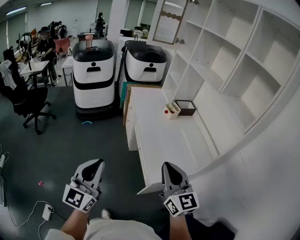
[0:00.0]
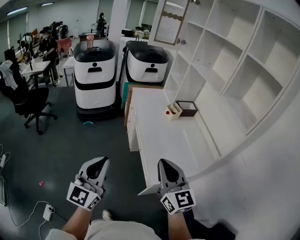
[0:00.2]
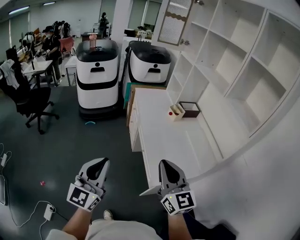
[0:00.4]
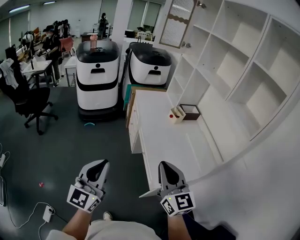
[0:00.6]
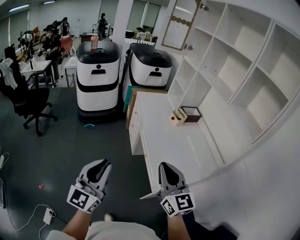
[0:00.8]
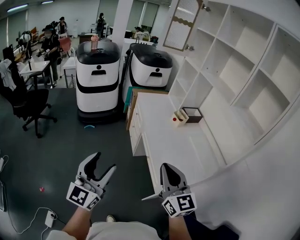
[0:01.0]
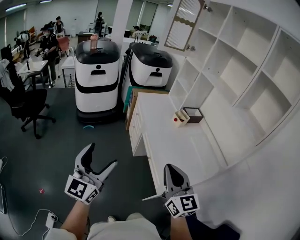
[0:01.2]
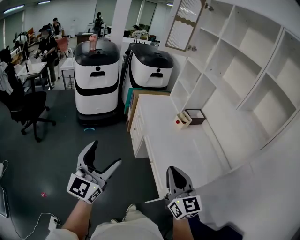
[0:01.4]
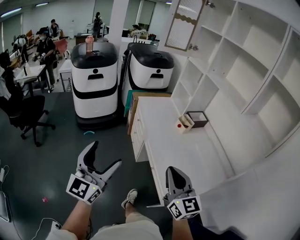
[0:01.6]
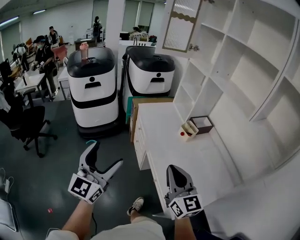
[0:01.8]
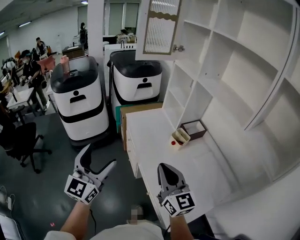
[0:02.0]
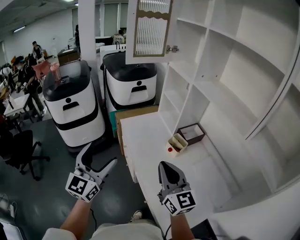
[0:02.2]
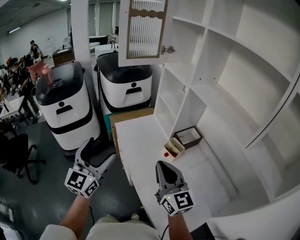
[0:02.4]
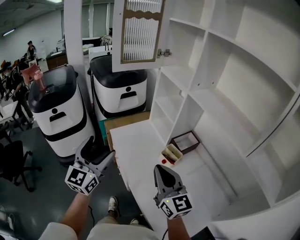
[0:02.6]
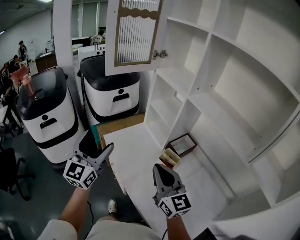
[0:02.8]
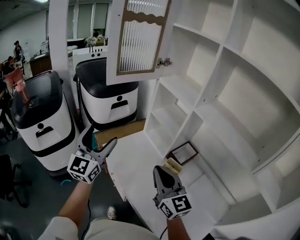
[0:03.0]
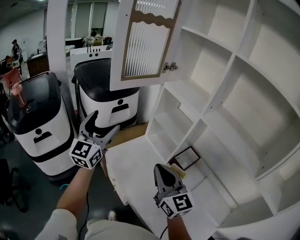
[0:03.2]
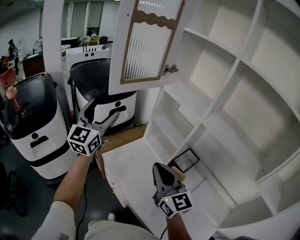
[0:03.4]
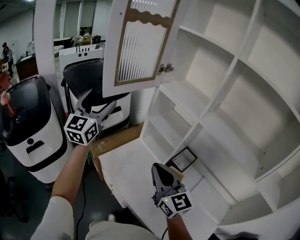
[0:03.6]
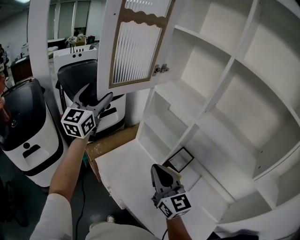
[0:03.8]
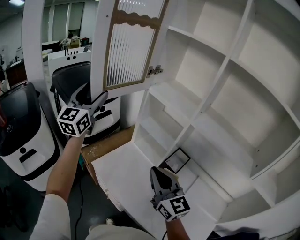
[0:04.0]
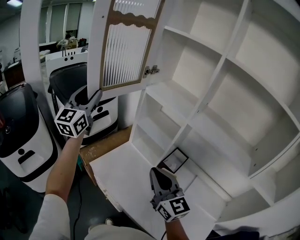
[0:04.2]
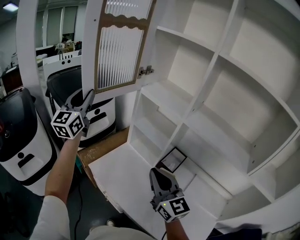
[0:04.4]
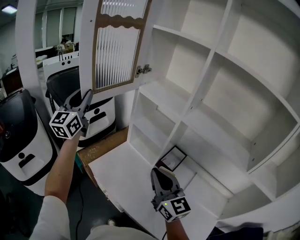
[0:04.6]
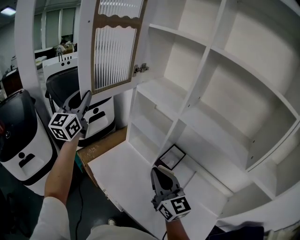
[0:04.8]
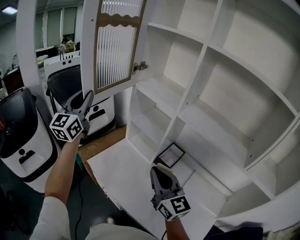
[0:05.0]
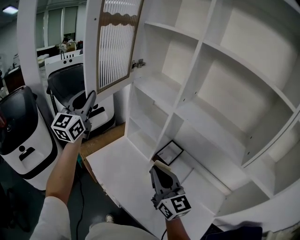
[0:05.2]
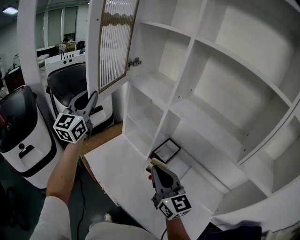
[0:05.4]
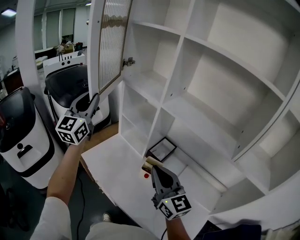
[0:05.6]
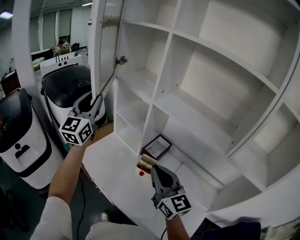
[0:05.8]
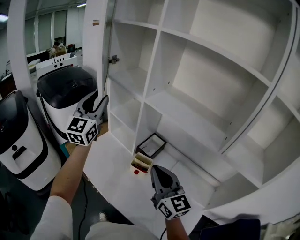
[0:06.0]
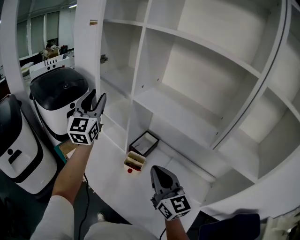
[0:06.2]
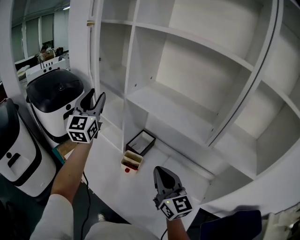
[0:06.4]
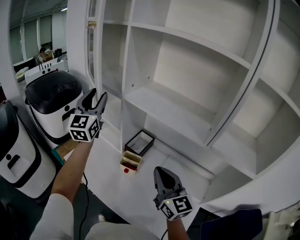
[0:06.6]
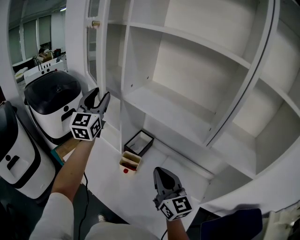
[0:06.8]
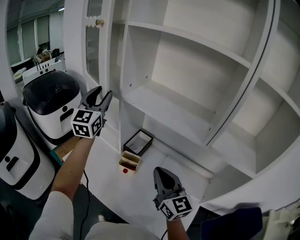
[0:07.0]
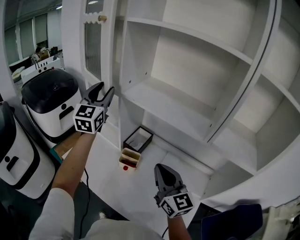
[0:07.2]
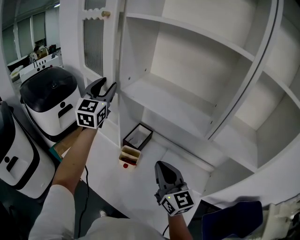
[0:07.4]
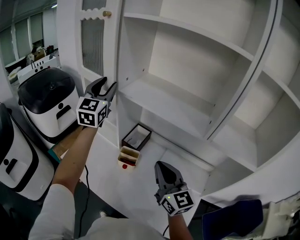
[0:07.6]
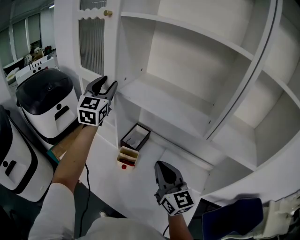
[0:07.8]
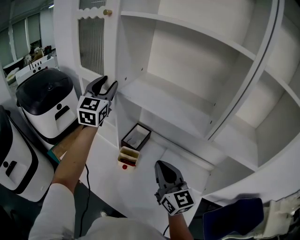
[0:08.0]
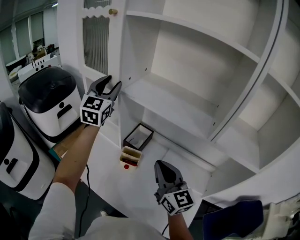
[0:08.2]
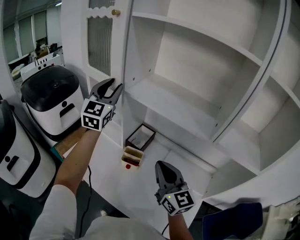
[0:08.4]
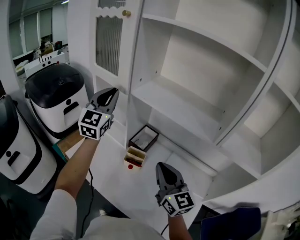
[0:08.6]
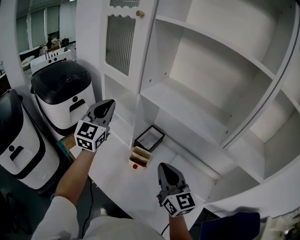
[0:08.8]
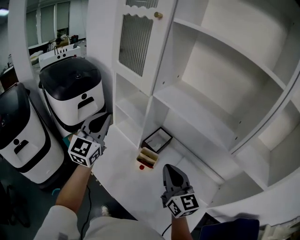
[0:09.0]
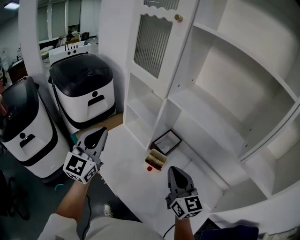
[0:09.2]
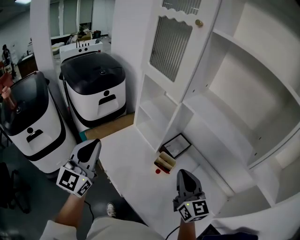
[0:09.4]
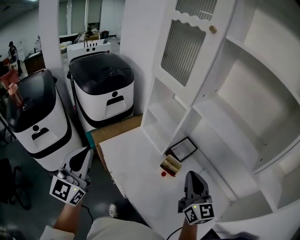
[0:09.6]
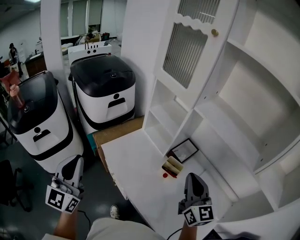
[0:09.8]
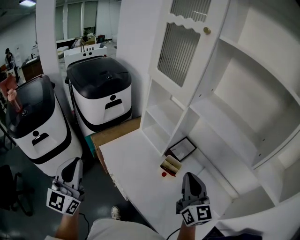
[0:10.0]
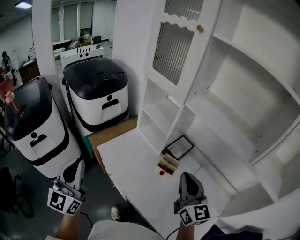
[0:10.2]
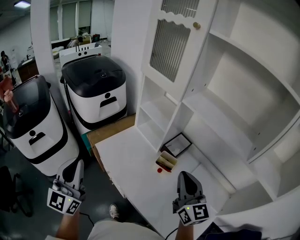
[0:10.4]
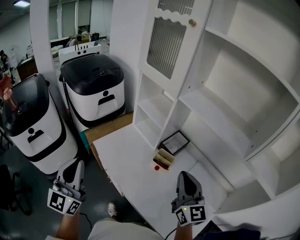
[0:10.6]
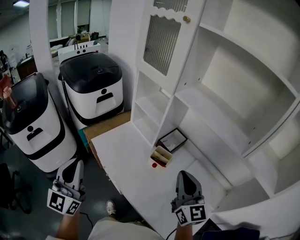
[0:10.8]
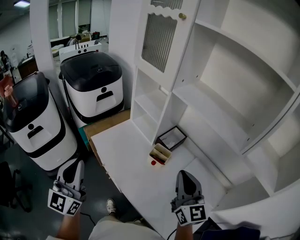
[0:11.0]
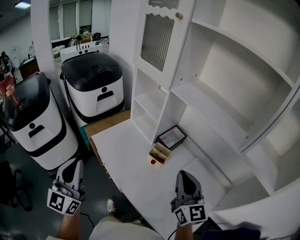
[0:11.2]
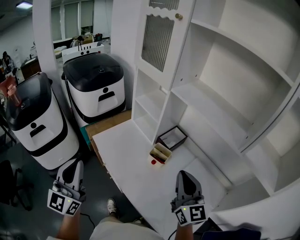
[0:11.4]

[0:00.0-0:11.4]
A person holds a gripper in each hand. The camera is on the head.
0:00.0 to 0:01.4: The left gripper shifts about 15 cm forward and to the left, and opens up, while the right gripper moves to the left and forward, roughly 15 cm.
0:01.4 to 0:02.8: Both grippers are carried forward, approximately 50 cm.
0:02.8 to 0:04.2: The left gripper goes about 35 cm forward, and closes up, while the right gripper shifts about 15 cm forward and to the left.
0:04.2 to 0:05.6: Both grippers move to the right and backward, roughly 15 cm.
0:05.6 to 0:07.2: The left gripper shifts about 20 cm to the right. Meanwhile the right gripper goes some 15 cm to the right.
0:07.2 to 0:08.6: The grippers stay close to where they were, moving slightly.
0:08.6 to 0:10.0: The right gripper is displaced to the left by roughly 10 cm, while the left gripper shifts some 40 cm to the left and backward, and turns by approximately 20 degrees.
0:10.0 to 0:11.4: The left gripper shifts approximately 10 cm to the right and backward, while the right gripper goes roughly 10 cm backward and to the right.

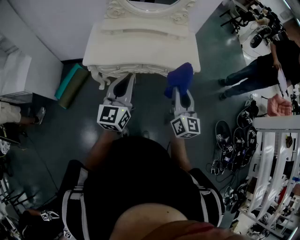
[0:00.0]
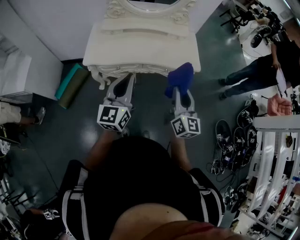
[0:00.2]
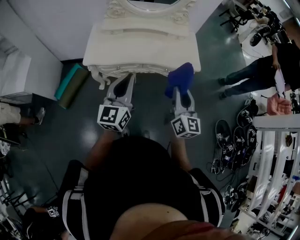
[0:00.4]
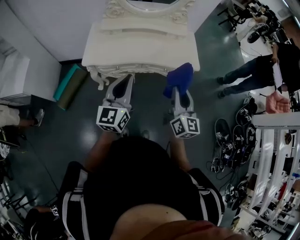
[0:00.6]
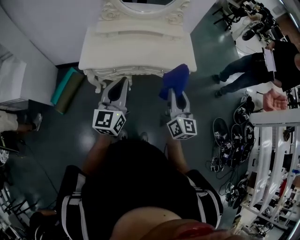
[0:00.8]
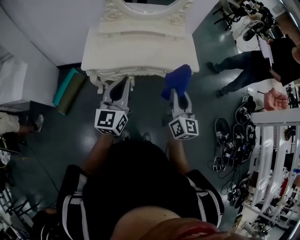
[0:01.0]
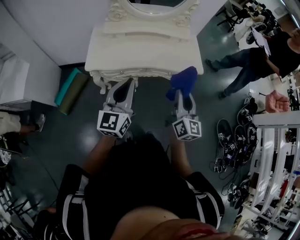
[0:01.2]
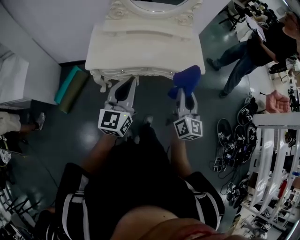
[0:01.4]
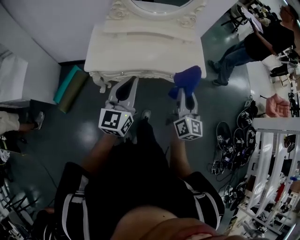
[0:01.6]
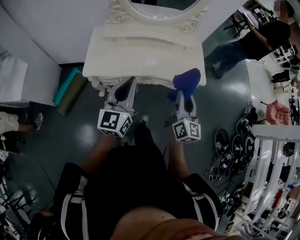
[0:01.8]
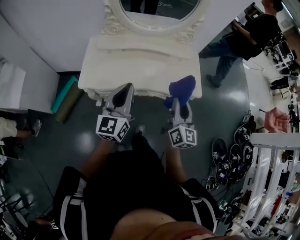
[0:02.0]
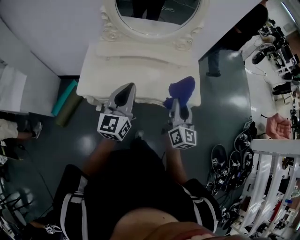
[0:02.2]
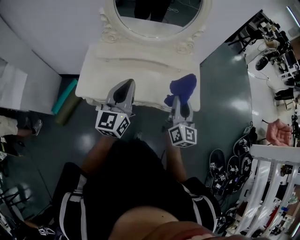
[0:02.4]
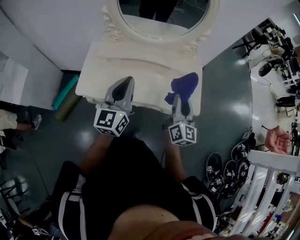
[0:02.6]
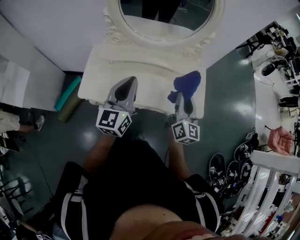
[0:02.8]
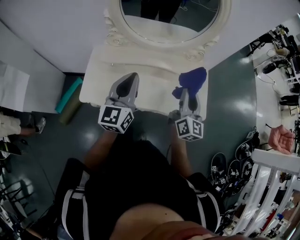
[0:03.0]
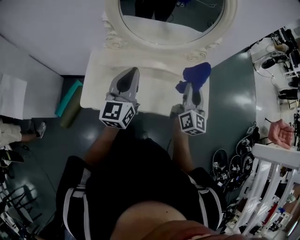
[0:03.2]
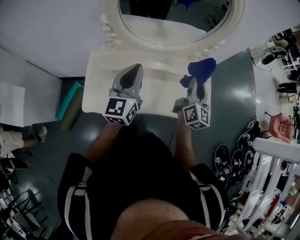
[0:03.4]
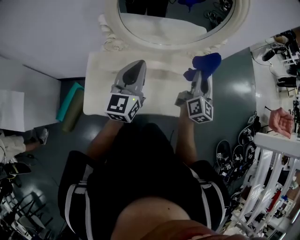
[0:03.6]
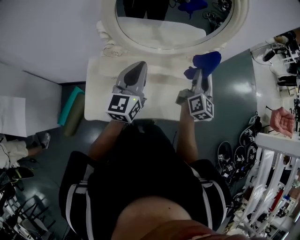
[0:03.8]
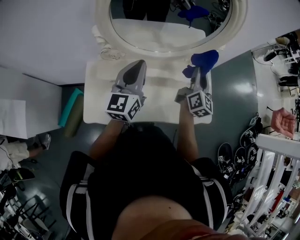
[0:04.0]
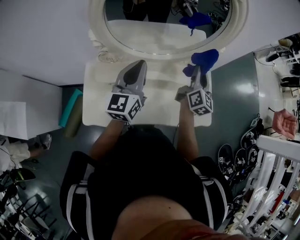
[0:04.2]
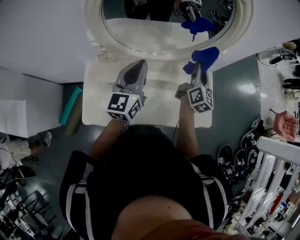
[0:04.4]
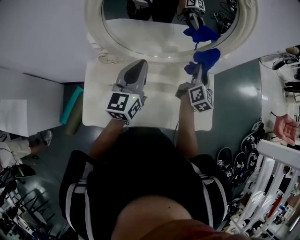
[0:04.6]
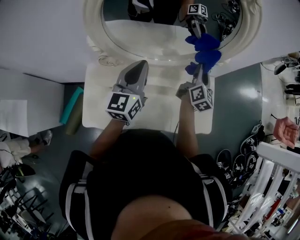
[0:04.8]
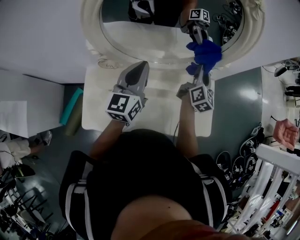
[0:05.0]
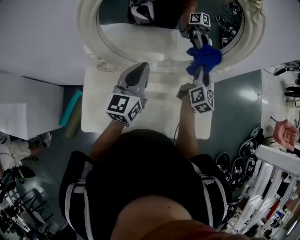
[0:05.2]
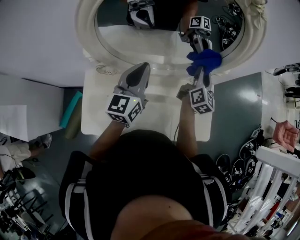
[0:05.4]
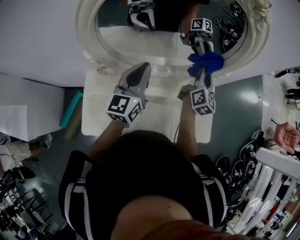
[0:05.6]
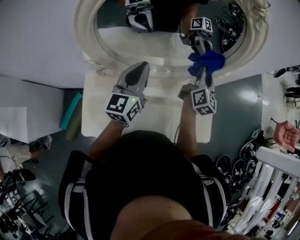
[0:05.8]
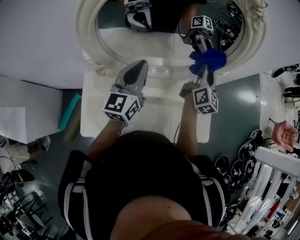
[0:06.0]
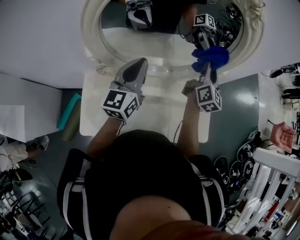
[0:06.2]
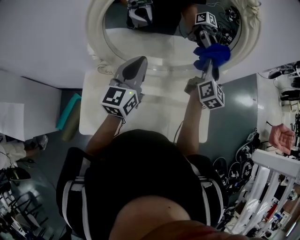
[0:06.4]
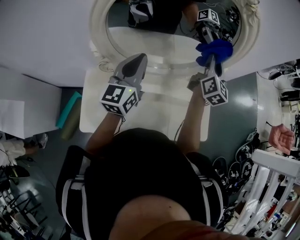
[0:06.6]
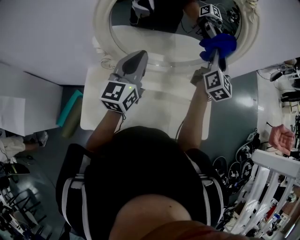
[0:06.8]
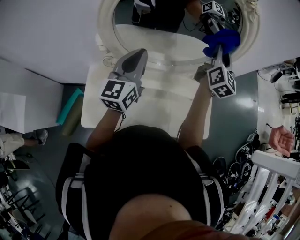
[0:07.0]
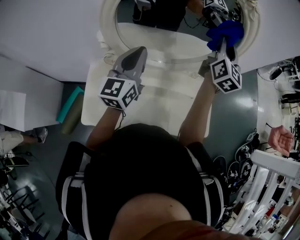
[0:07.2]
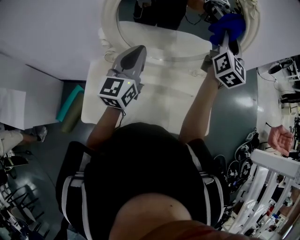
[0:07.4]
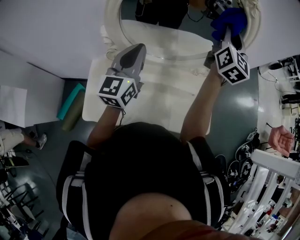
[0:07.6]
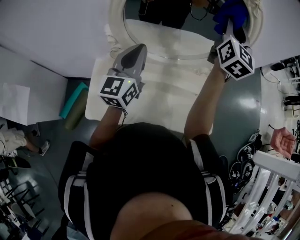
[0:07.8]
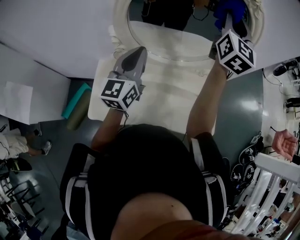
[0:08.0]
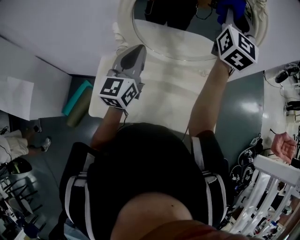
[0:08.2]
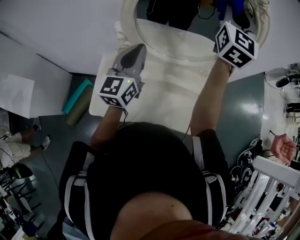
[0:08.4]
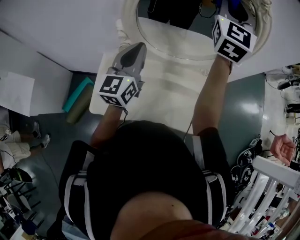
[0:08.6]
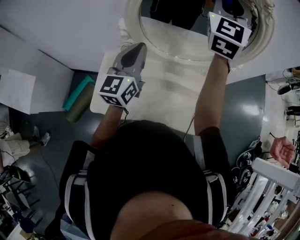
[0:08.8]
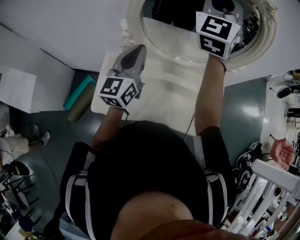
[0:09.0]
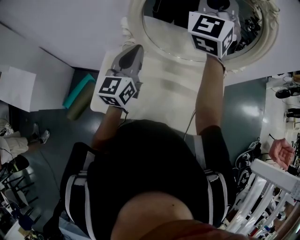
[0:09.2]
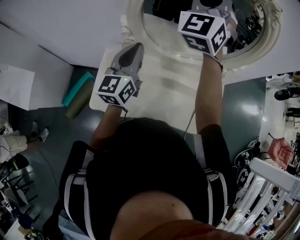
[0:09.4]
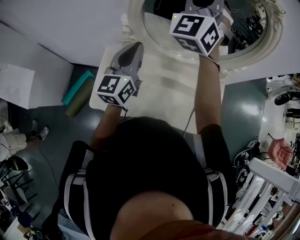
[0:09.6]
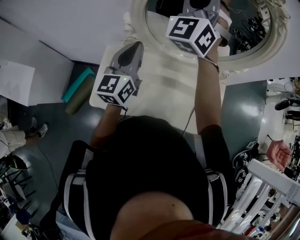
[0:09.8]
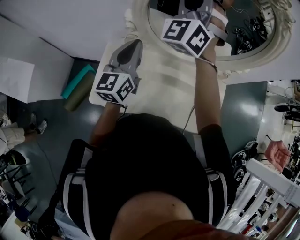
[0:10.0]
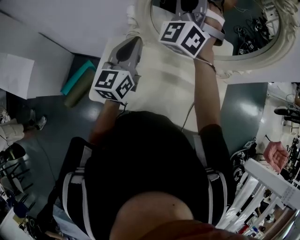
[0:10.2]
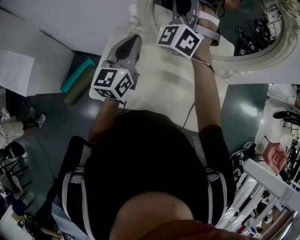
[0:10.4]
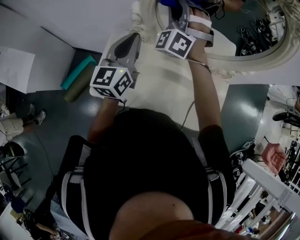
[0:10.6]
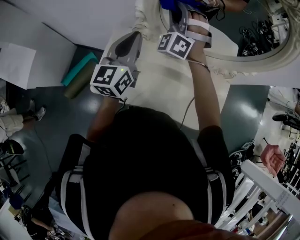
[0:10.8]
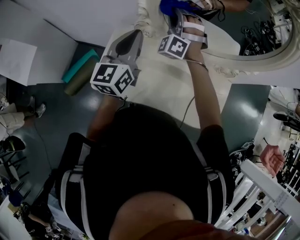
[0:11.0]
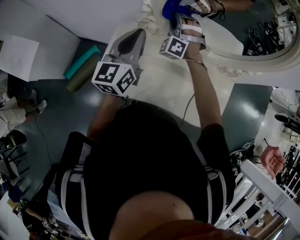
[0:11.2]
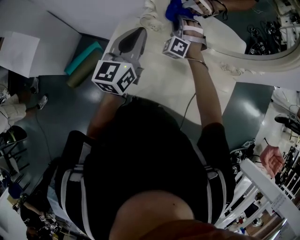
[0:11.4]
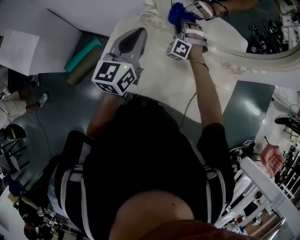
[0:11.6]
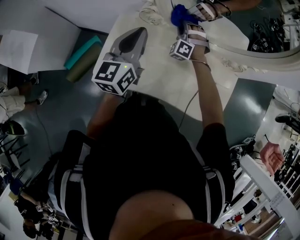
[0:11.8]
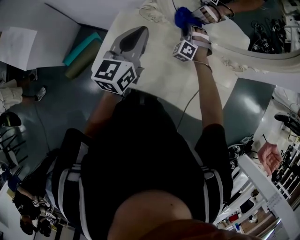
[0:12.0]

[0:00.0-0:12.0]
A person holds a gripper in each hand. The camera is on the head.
0:00.0 to 0:01.6: The left gripper heads forward and to the left, covering roughly 10 cm. The right gripper shifts roughly 5 cm forward.
0:01.6 to 0:03.0: The grippers both shift forward by approximately 25 cm.
0:03.0 to 0:04.4: Both grippers travel together forward, some 20 cm.
0:04.4 to 0:06.0: The grippers both shift forward by roughly 10 cm.
0:06.0 to 0:07.6: The right gripper is displaced upward by approximately 20 cm, and turns by approximately 20 degrees, while the left gripper is displaced backward and upward by about 10 cm.
0:07.6 to 0:09.0: The right gripper moves to the left and upward, some 20 cm, and turns by approximately 40 degrees. Meanwhile the left gripper heads to the left, covering roughly 5 cm.
0:09.0 to 0:10.4: The right gripper shifts some 20 cm downward and to the left, and changes its angle by approximately 30 degrees.
0:10.4 to 0:12.0: The right gripper shifts roughly 35 cm downward, and tilts its fingers some 30 degrees downward, while the left gripper moves some 5 cm.
